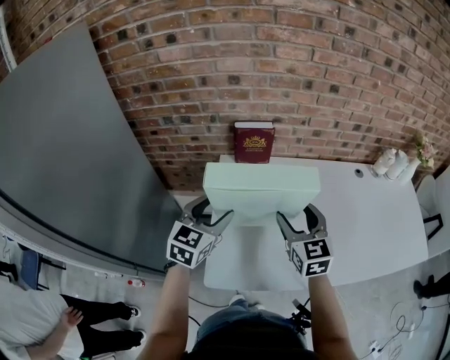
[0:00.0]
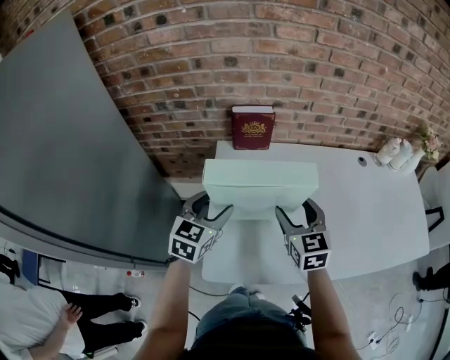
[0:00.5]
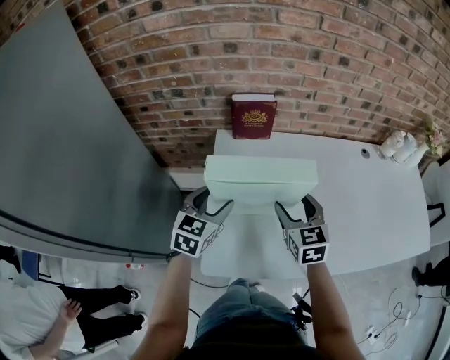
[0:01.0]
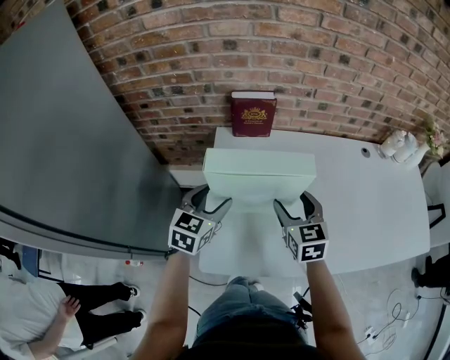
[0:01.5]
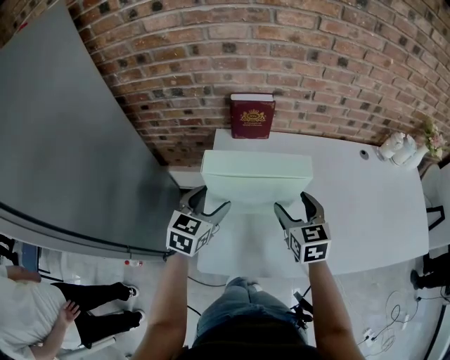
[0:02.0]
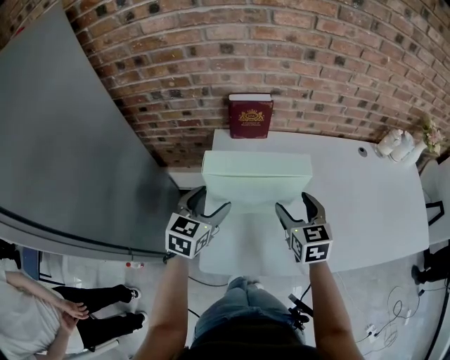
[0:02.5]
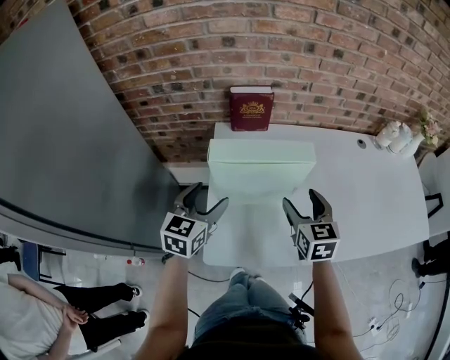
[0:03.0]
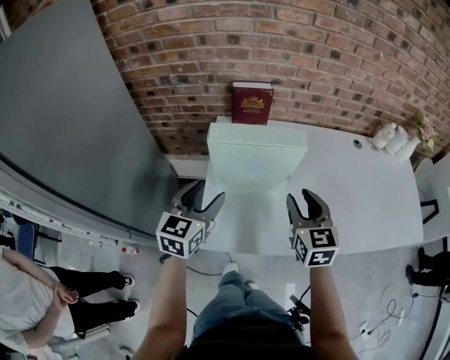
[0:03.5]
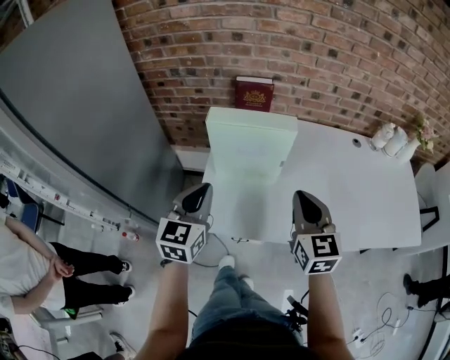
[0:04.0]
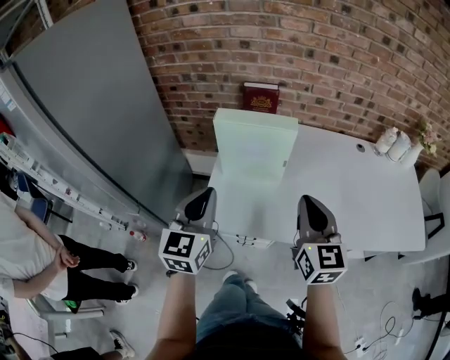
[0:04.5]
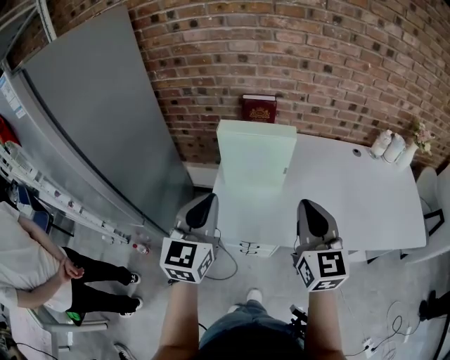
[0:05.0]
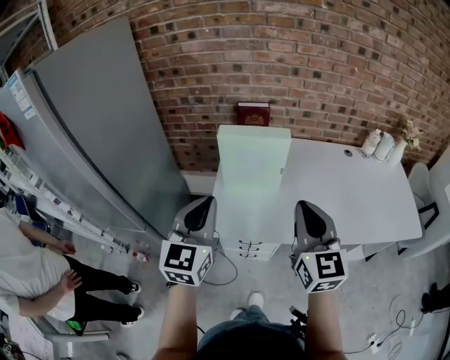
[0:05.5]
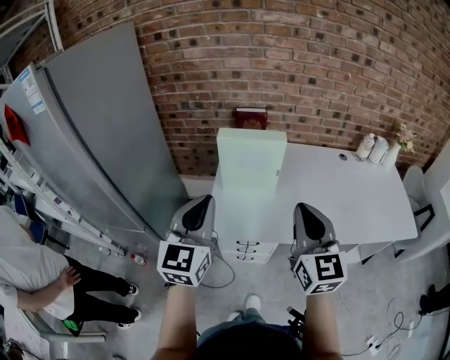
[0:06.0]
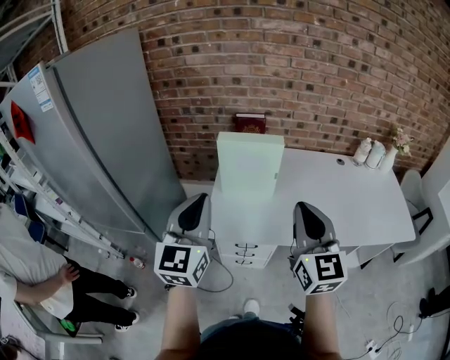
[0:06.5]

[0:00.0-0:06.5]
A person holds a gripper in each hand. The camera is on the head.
0:00.0 to 0:02.0: Both grippers travel together downward, some 10 cm.
0:02.0 to 0:04.5: Both grippers travel together backward and upward, approximately 25 cm. The right gripper closes up, while the left gripper turns by roughly 30 degrees, and closes up.
0:04.5 to 0:06.5: The left gripper heads upward and backward, covering roughly 15 cm. The right gripper shifts approximately 15 cm backward and upward.

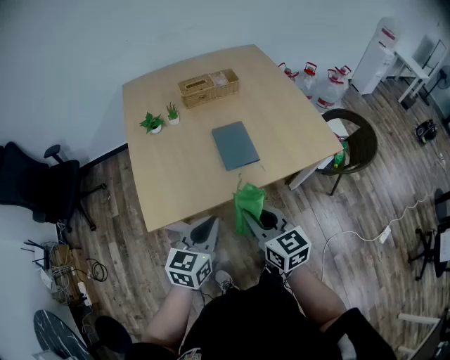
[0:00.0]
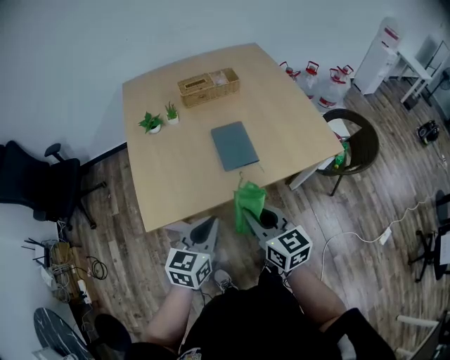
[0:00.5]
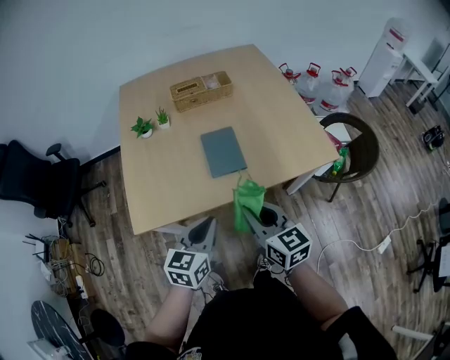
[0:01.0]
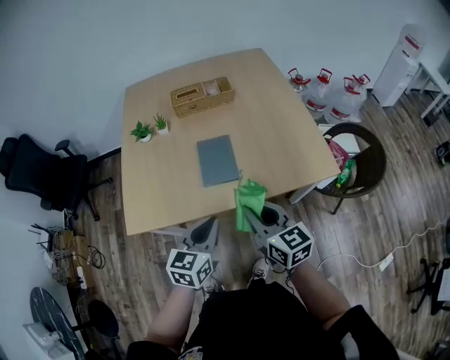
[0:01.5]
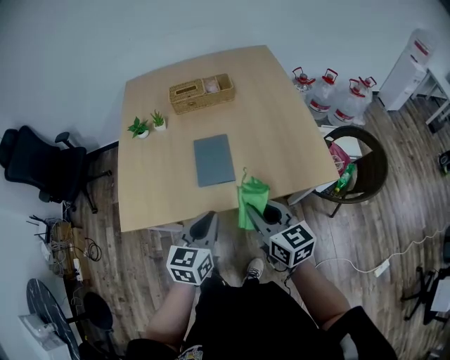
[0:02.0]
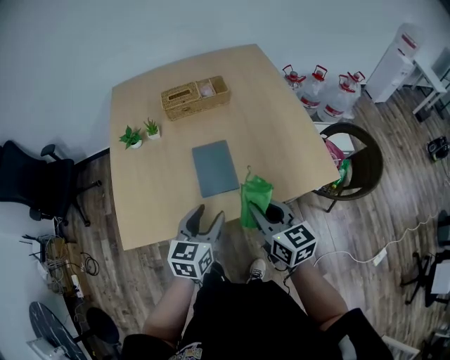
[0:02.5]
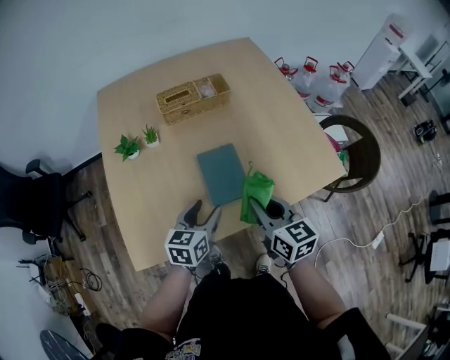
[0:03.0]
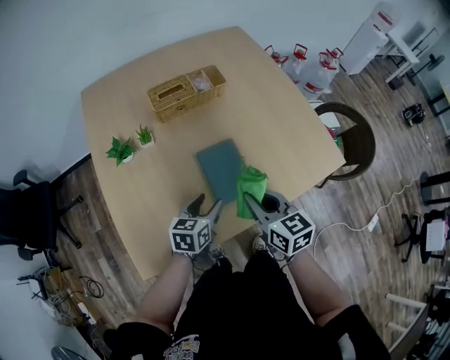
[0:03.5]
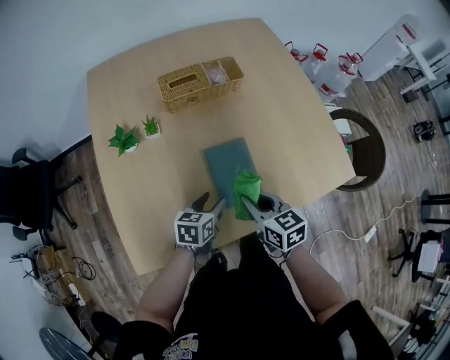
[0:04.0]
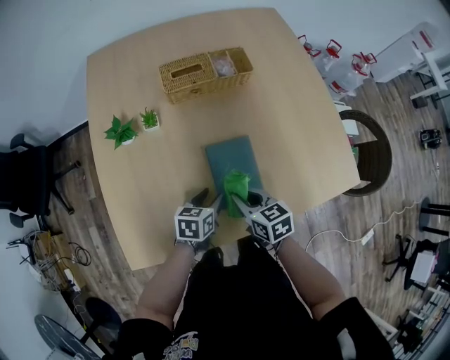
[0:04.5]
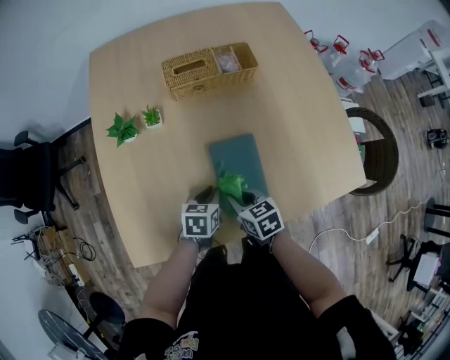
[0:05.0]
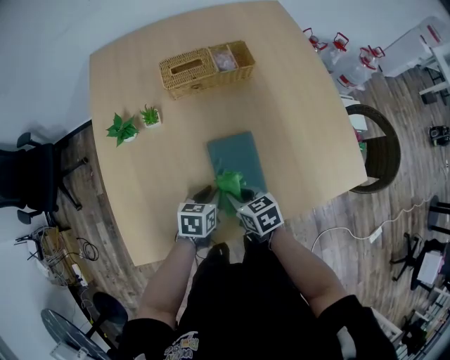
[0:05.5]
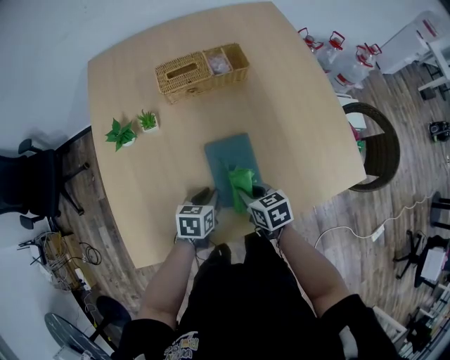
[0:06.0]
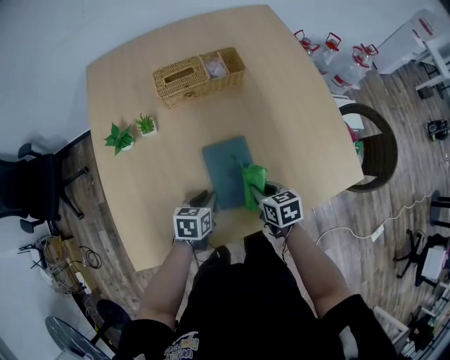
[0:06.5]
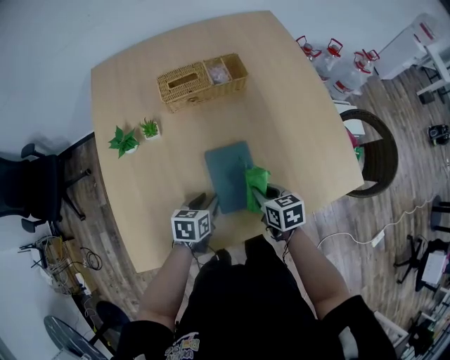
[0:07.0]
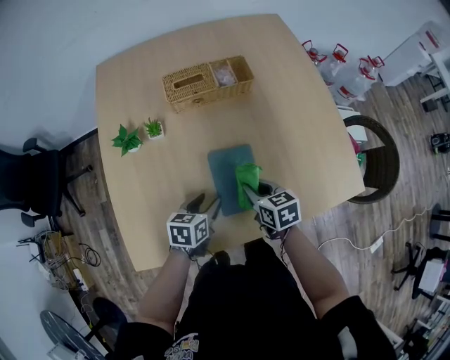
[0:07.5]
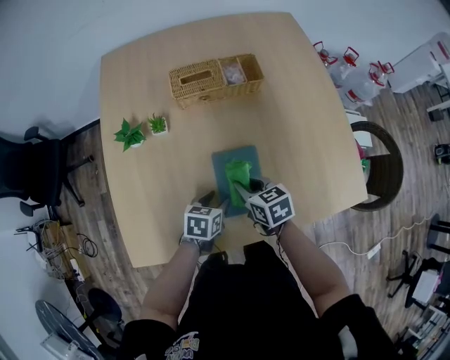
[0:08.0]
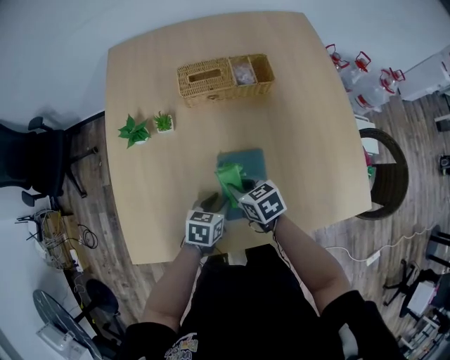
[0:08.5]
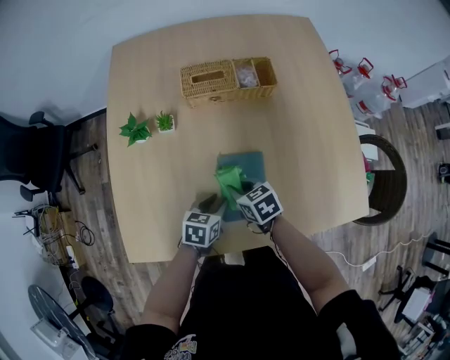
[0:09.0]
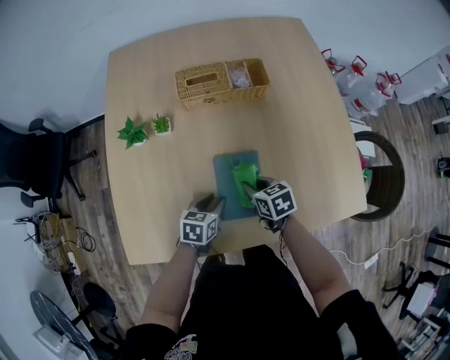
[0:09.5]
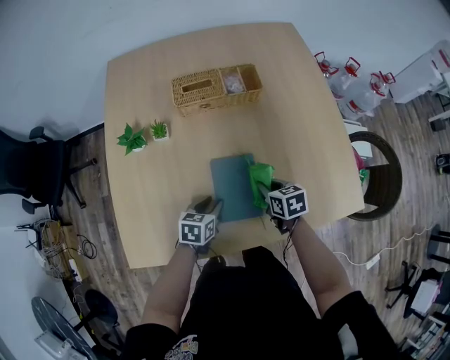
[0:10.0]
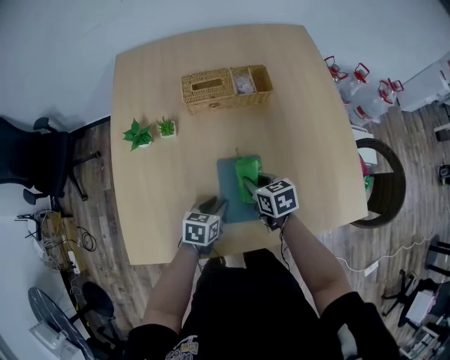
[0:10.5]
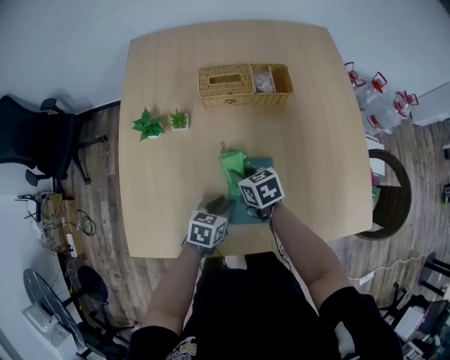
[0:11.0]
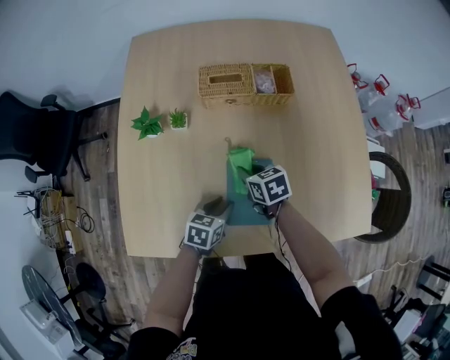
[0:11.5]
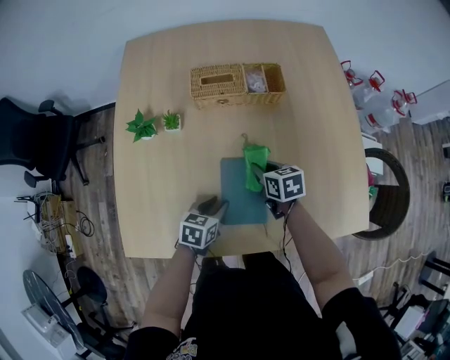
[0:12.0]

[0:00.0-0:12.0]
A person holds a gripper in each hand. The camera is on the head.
0:00.0 to 0:02.0: The two grippers go about 20 cm to the right and forward.
0:02.0 to 0:04.0: The left gripper heads forward, downward and to the left, covering some 30 cm, rotates approximately 30 degrees, and opens its fingers, while the right gripper shifts some 25 cm forward, to the left and downward, and turns by some 20 degrees.
0:04.0 to 0:06.0: The right gripper travels downward by roughly 10 cm. The left gripper closes up.
0:06.0 to 0:08.0: The right gripper is displaced forward by some 5 cm, and travels to the right and back again, roughly 5 cm each way; the left gripper opens.
0:08.0 to 0:10.0: The right gripper travels to the right by approximately 10 cm.
0:10.0 to 0:12.0: The right gripper goes roughly 10 cm forward, and goes to the left and returns, approximately 15 cm each way.

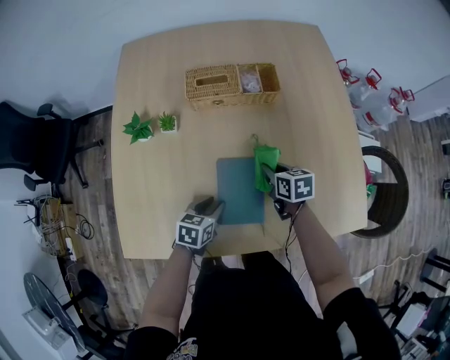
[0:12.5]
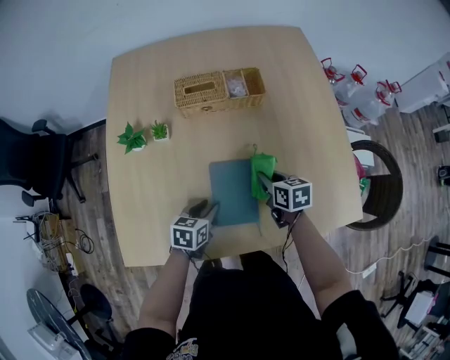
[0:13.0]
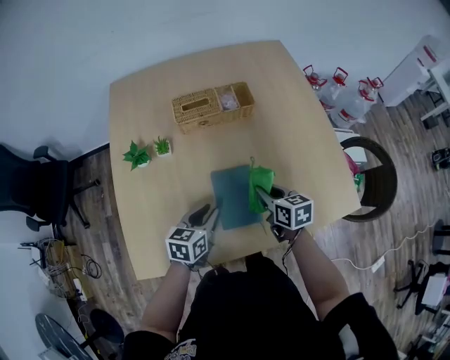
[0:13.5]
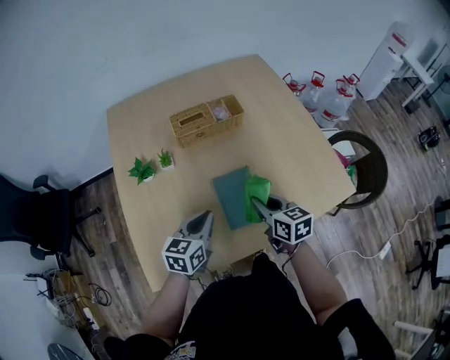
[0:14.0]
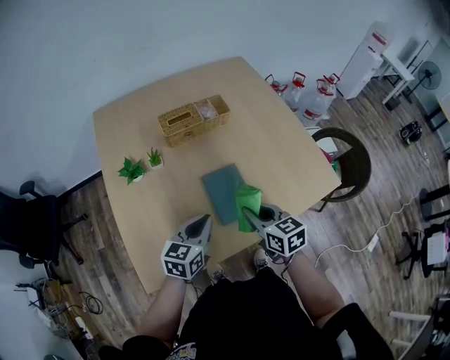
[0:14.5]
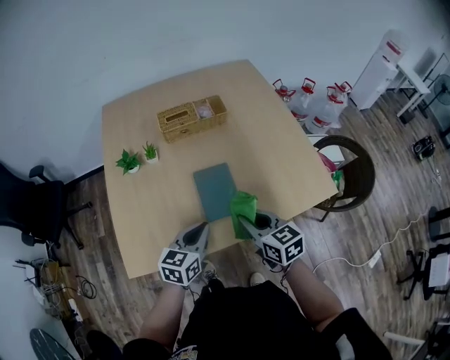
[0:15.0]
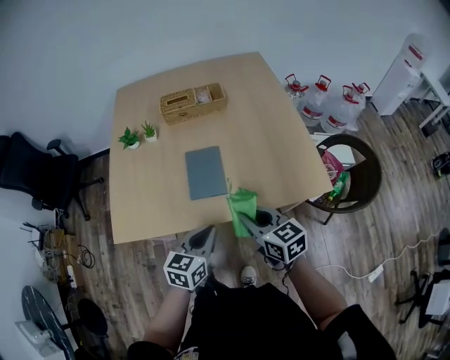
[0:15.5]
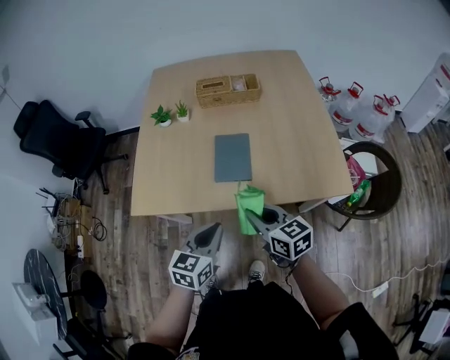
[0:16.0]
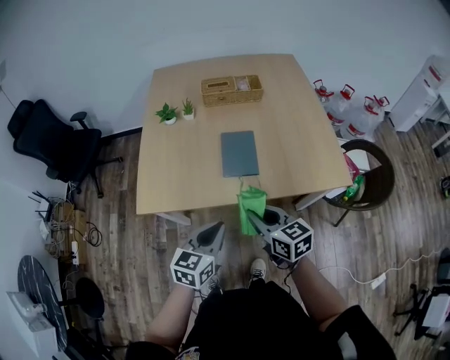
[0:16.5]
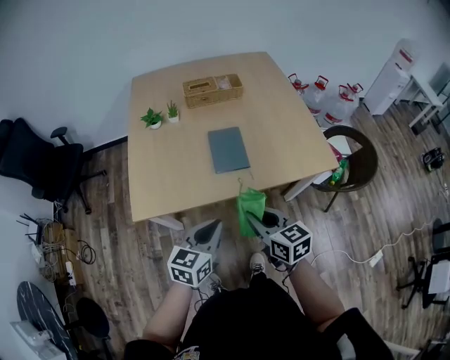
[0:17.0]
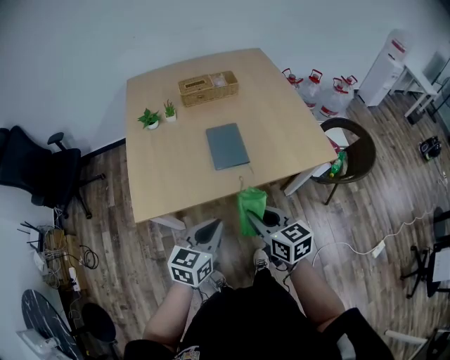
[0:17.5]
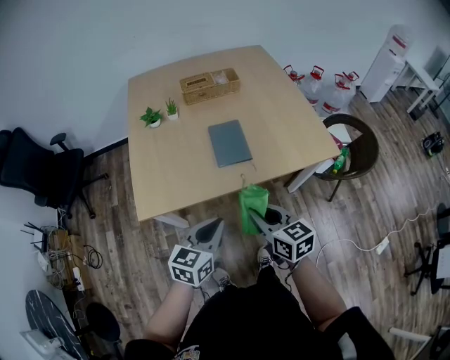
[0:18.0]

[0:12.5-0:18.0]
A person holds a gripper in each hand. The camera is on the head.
0:12.5 to 0:14.5: The right gripper goes roughly 25 cm backward and upward, and changes its angle by about 20 degrees. The left gripper moves upward, about 15 cm, swivels roughly 30 degrees, and closes up.
0:14.5 to 0:16.0: The left gripper ends up about 25 cm from where it was, and rotates approximately 20 degrees; the right gripper moves about 15 cm, and rotates about 30 degrees.
0:16.0 to 0:18.0: The left gripper goes about 10 cm to the left and backward. Meanwhile the right gripper heads backward and to the left, covering some 10 cm.

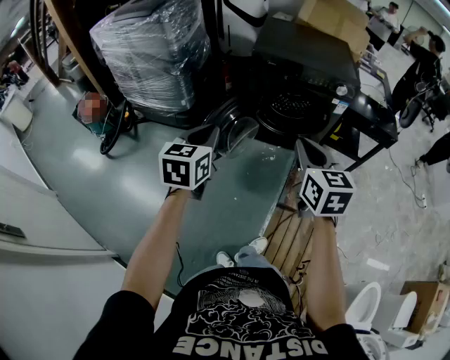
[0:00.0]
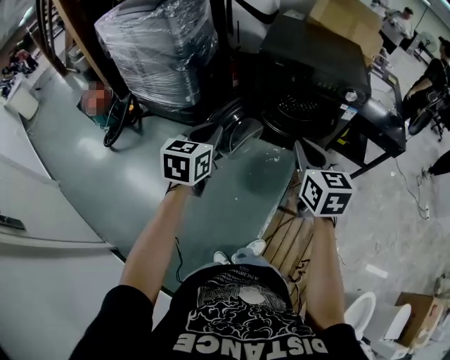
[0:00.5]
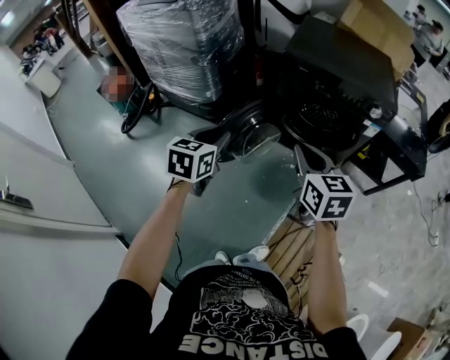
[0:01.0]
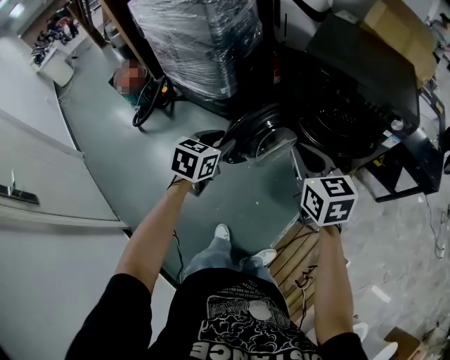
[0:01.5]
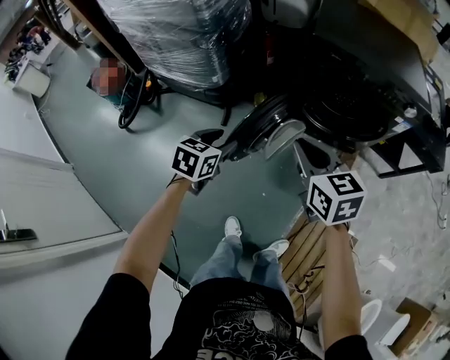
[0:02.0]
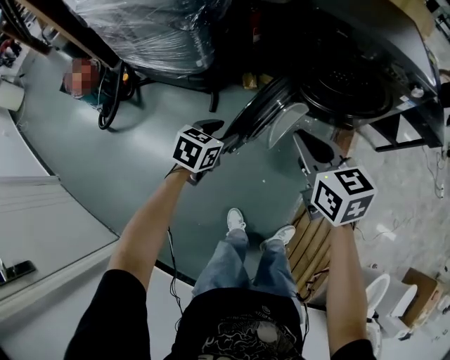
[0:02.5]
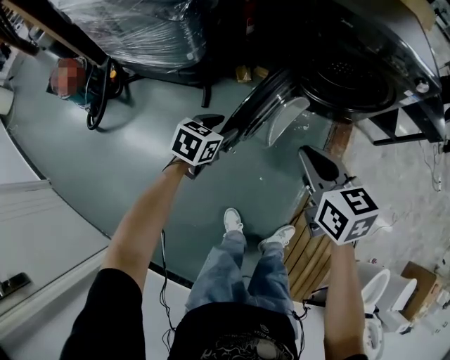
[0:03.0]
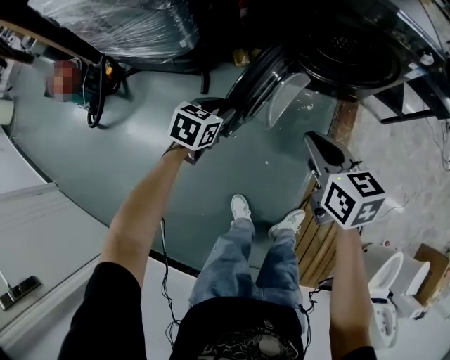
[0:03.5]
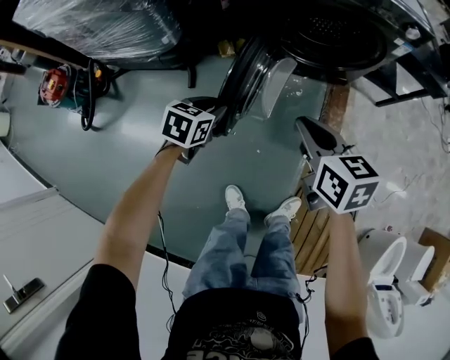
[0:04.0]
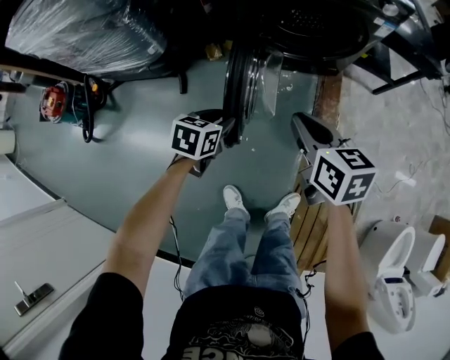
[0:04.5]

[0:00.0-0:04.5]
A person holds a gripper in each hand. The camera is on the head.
0:00.0 to 0:02.0: The left gripper is displaced downward, forward and to the left by roughly 25 cm, changes its angle by about 20 degrees, and opens its fingers. Meanwhile the right gripper shifts approximately 25 cm forward, to the left and downward, and rotates about 20 degrees.
0:02.0 to 0:04.5: Both grippers travel together downward and to the right, about 20 cm. The right gripper changes its angle by approximately 30 degrees.
